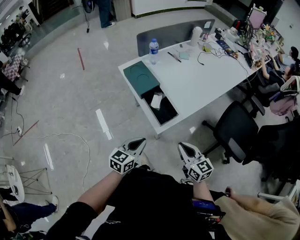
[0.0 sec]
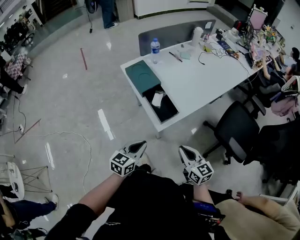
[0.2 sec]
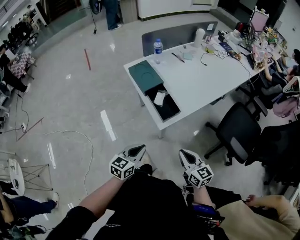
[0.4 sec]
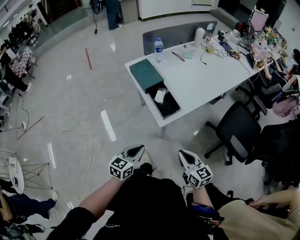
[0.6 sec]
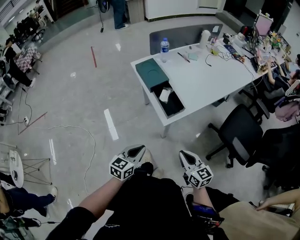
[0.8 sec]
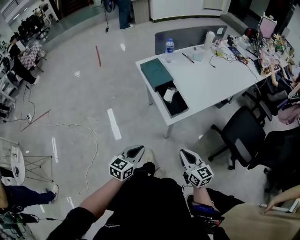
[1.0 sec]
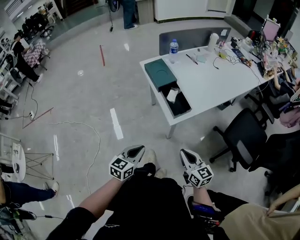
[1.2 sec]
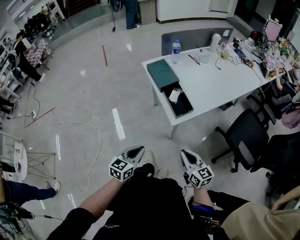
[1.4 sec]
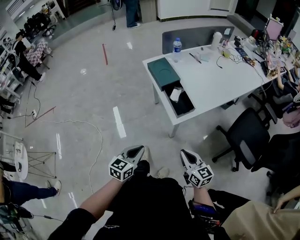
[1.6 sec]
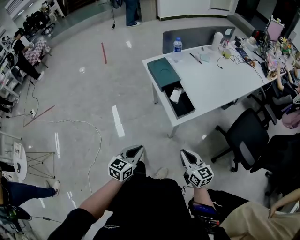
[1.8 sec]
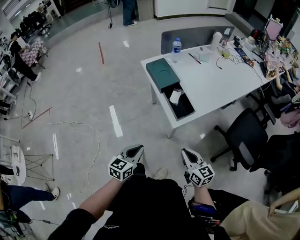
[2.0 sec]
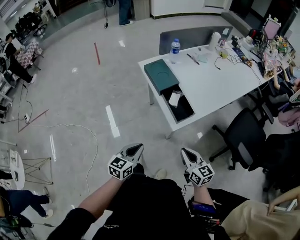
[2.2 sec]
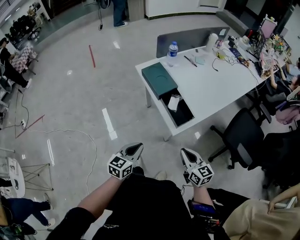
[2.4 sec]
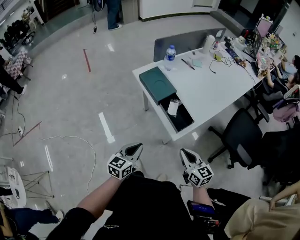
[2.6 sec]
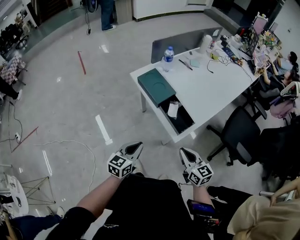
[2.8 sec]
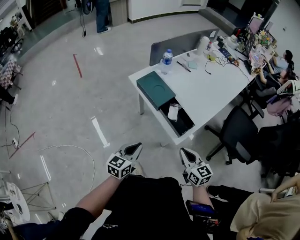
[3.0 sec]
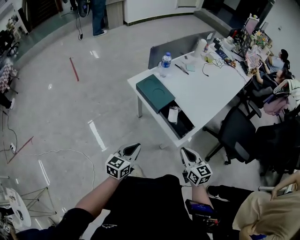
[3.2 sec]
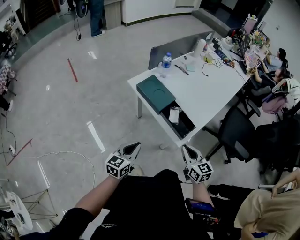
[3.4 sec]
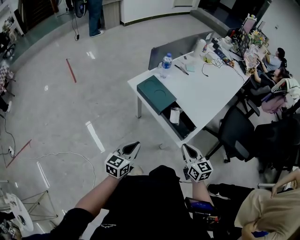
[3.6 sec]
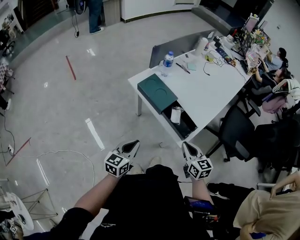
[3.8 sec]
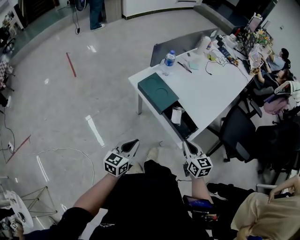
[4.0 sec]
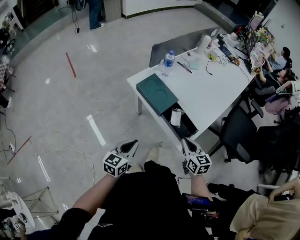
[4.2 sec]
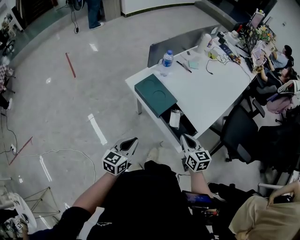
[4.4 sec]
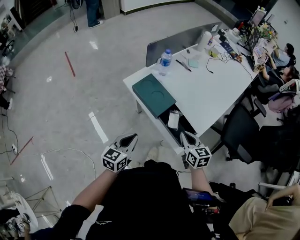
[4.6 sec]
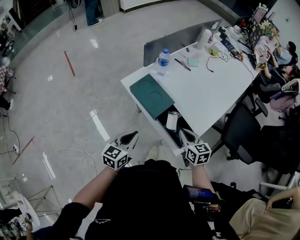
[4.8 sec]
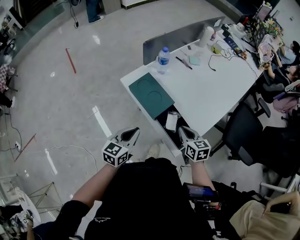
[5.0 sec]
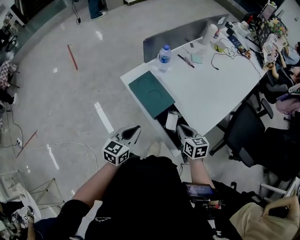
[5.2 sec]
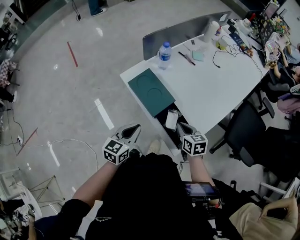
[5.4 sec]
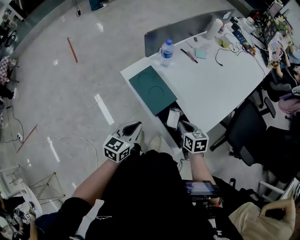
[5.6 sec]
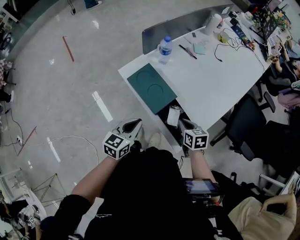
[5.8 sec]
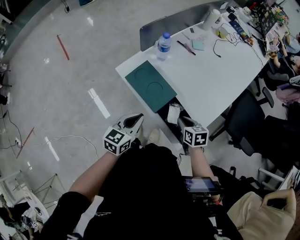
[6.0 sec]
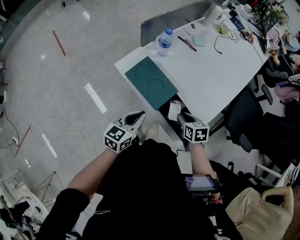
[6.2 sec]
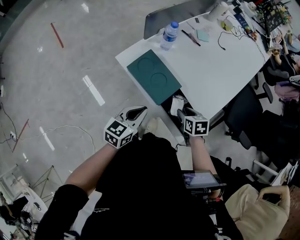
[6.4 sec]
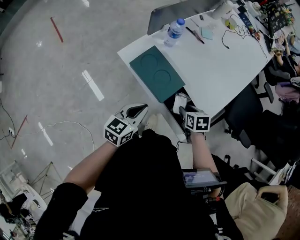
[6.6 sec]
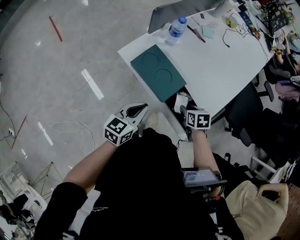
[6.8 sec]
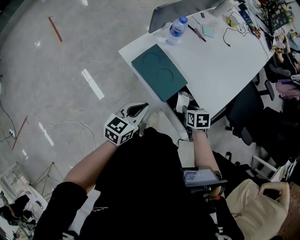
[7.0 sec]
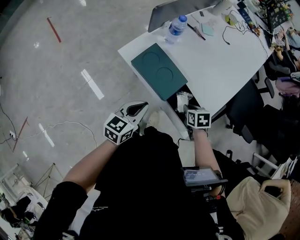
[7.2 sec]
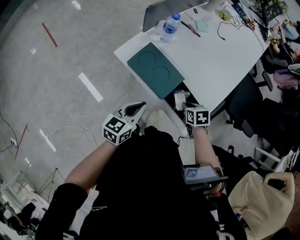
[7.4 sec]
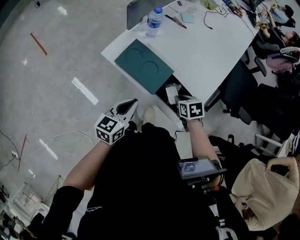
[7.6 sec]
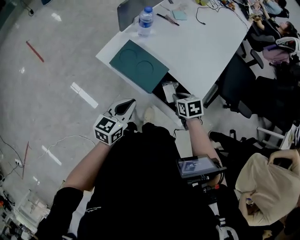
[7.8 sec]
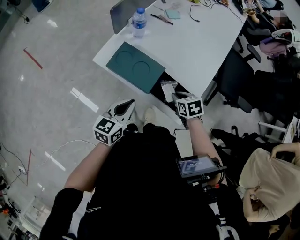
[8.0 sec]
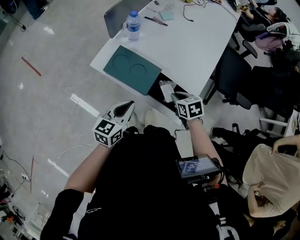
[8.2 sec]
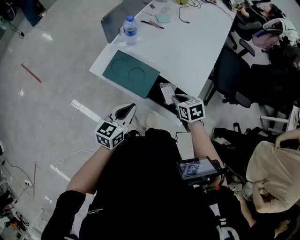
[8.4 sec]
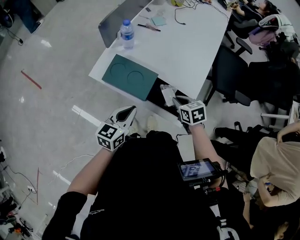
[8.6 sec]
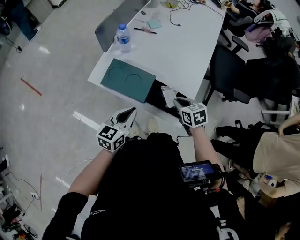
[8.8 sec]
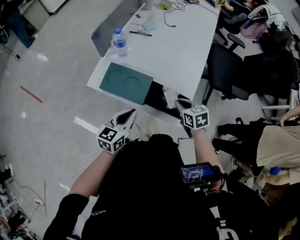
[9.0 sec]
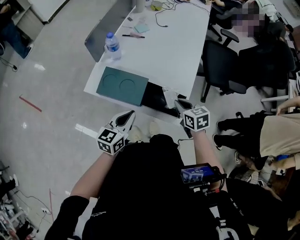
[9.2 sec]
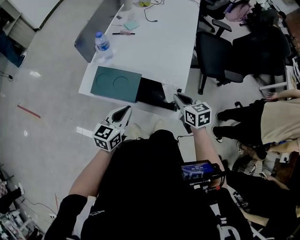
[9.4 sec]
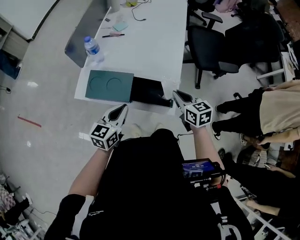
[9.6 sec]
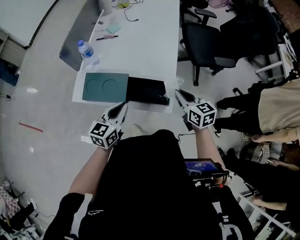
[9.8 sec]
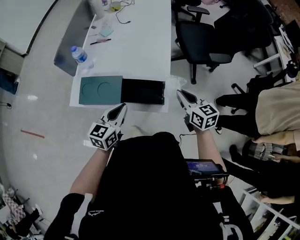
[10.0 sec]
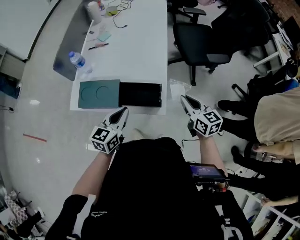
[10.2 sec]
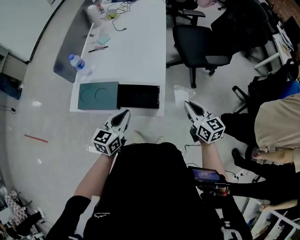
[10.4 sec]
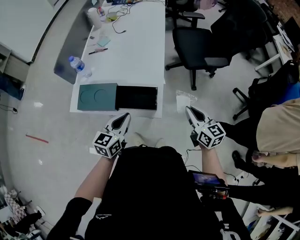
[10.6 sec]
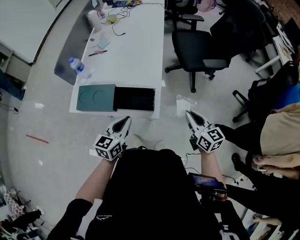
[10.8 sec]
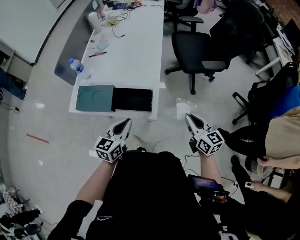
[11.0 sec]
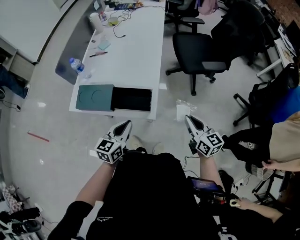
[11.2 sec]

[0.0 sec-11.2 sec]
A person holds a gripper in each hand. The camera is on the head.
0.0 sec to 1.6 sec: The right gripper is displaced backward by approximately 10 cm. The left gripper is displaced backward and to the left by some 15 cm.
1.6 sec to 3.2 sec: Both grippers travel together forward and to the left, approximately 20 cm. The right gripper rotates roughly 20 degrees.
3.2 sec to 4.8 sec: The two grippers go approximately 15 cm forward.
4.8 sec to 6.4 sec: The right gripper heads downward and forward, covering about 10 cm, swivels about 30 degrees, and opens its fingers. Meanwhile the left gripper heads forward, covering some 10 cm.
6.4 sec to 8.0 sec: The right gripper closes up.
8.0 sec to 9.6 sec: The left gripper moves some 5 cm. Meanwhile the right gripper is displaced upward and to the right by roughly 15 cm, and swivels approximately 40 degrees.
9.6 sec to 11.2 sec: The right gripper is displaced to the right and backward by approximately 20 cm, and swivels some 20 degrees. The left gripper heads to the right, covering about 15 cm.

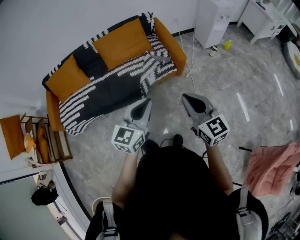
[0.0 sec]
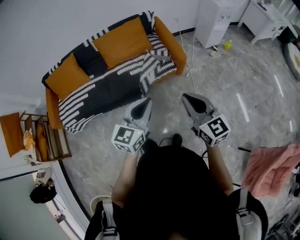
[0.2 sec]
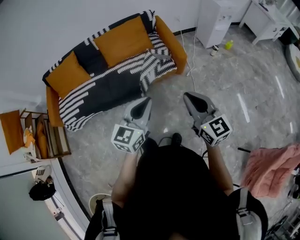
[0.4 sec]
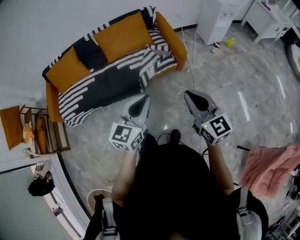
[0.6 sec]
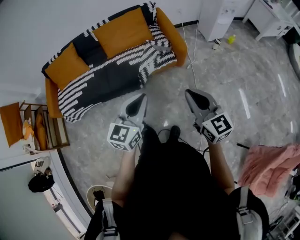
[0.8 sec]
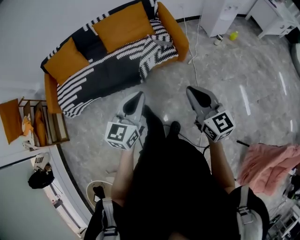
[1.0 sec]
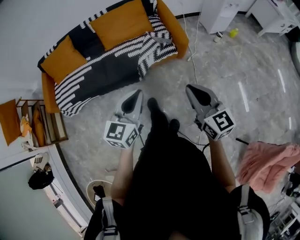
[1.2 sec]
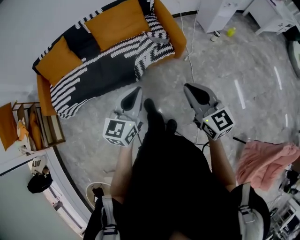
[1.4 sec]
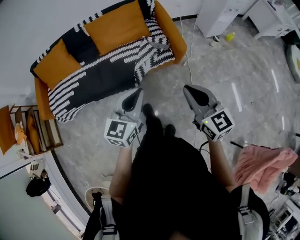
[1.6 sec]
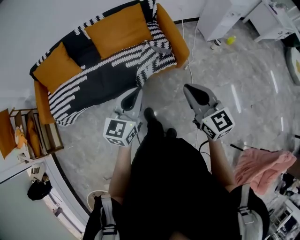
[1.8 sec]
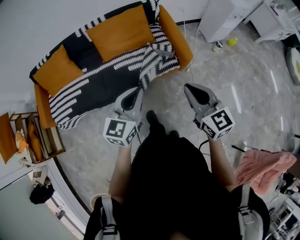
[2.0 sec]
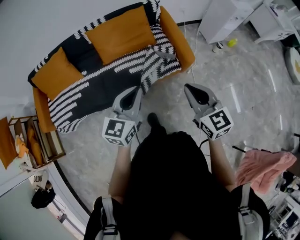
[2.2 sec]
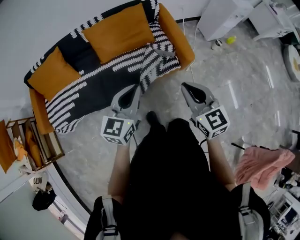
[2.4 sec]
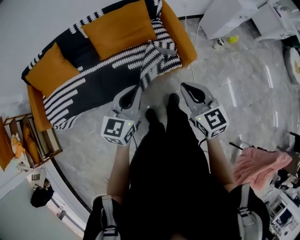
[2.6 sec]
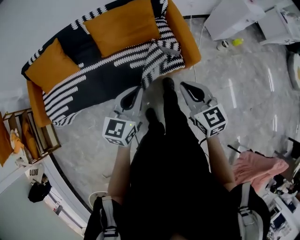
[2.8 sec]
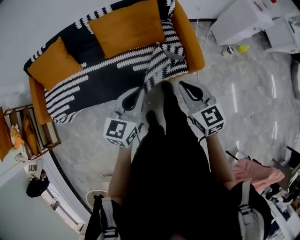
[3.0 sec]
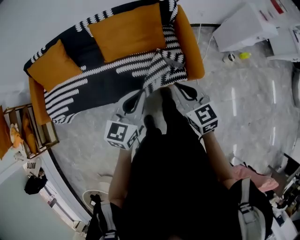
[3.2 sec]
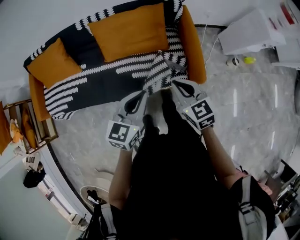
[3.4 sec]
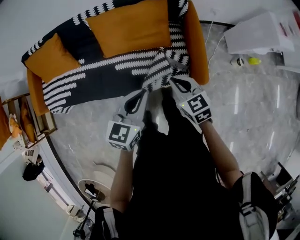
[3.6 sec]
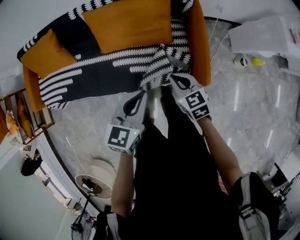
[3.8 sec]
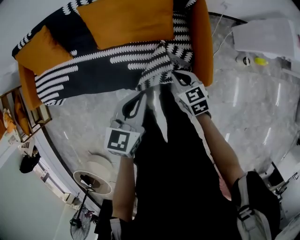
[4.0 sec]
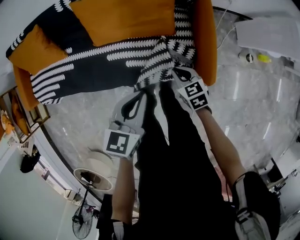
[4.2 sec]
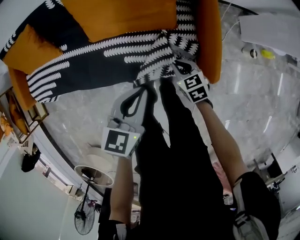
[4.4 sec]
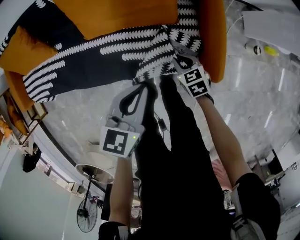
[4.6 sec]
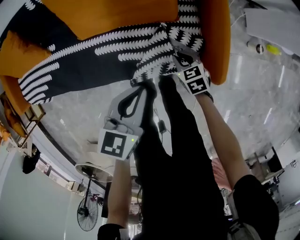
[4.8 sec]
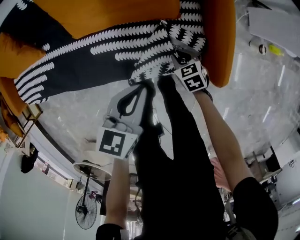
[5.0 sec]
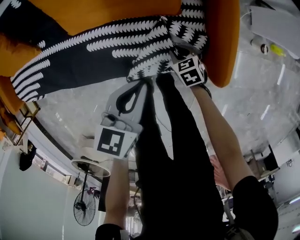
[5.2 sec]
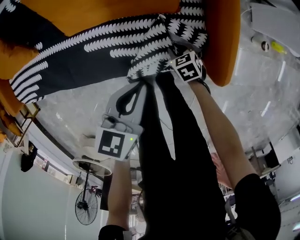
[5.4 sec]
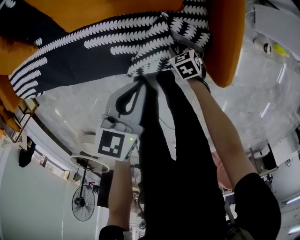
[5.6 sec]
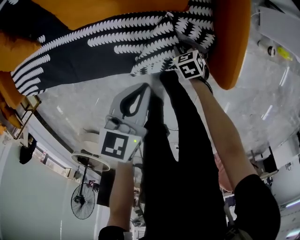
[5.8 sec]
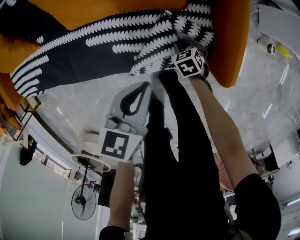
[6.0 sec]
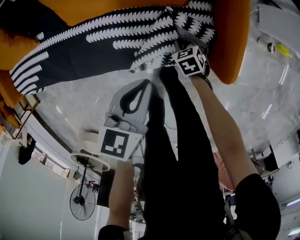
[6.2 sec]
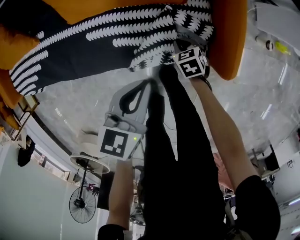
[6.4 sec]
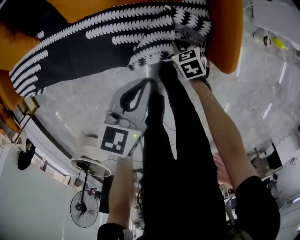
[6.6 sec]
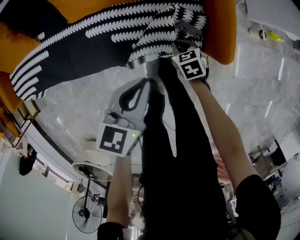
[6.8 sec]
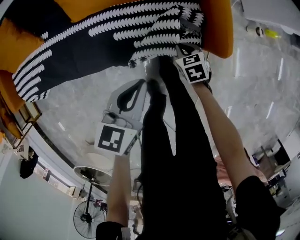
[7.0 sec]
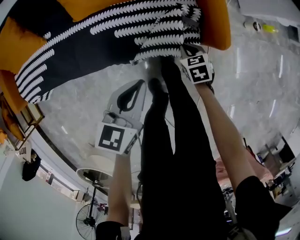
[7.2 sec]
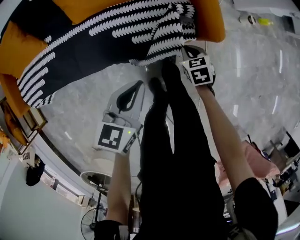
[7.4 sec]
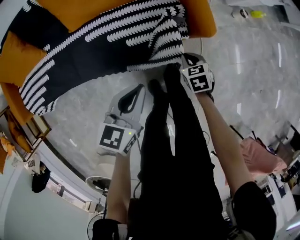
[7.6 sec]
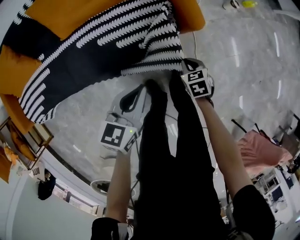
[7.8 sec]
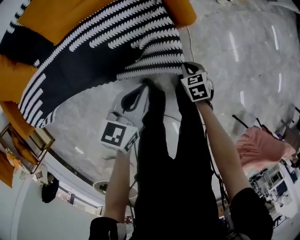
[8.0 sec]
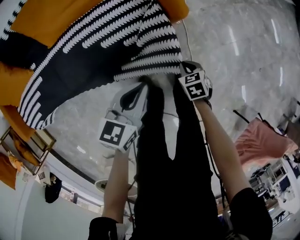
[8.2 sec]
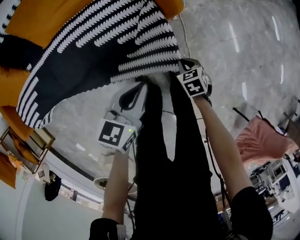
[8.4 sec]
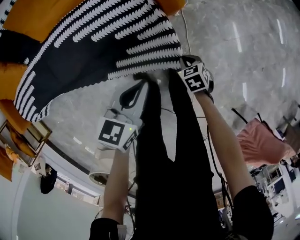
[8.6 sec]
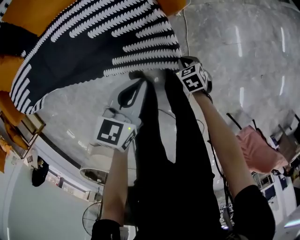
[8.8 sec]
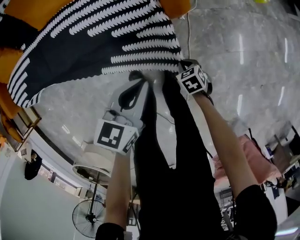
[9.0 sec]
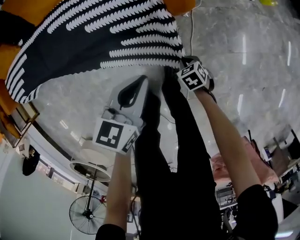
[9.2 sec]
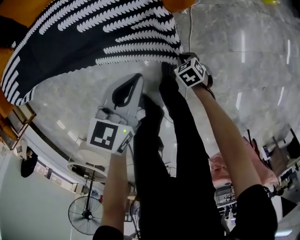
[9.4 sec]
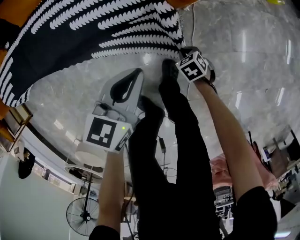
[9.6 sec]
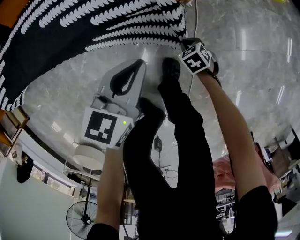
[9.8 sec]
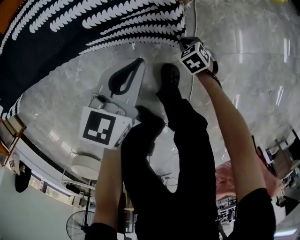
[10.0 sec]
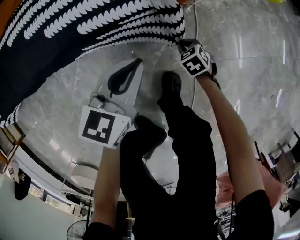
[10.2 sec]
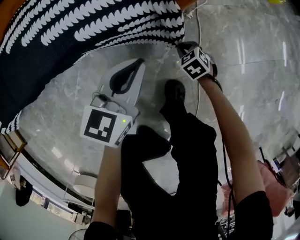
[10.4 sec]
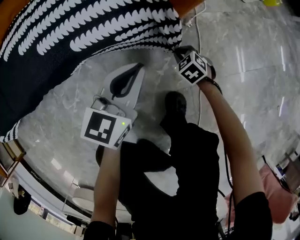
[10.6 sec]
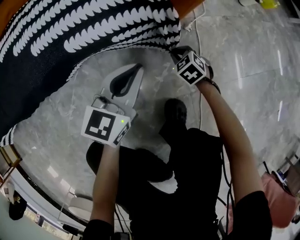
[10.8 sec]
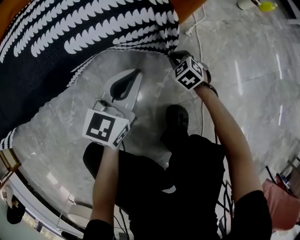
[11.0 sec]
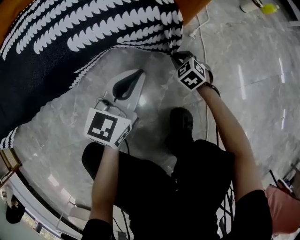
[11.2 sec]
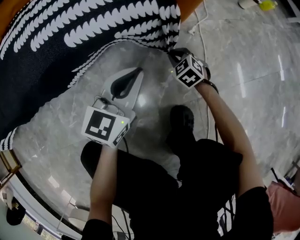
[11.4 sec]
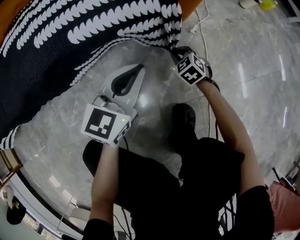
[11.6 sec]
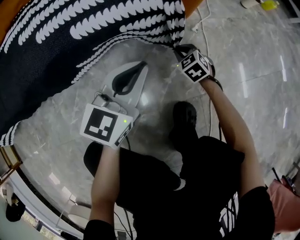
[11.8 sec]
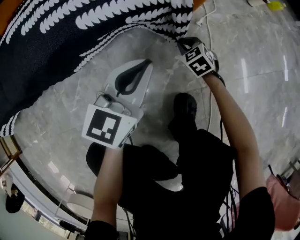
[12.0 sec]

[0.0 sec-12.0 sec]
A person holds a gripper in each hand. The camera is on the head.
0.0 sec to 1.6 sec: Both grippers move forward, about 10 cm.
1.6 sec to 3.0 sec: Both grippers travel together forward and to the left, roughly 25 cm.
3.0 sec to 4.4 sec: The right gripper moves downward and forward, approximately 40 cm, and turns by roughly 30 degrees. The left gripper travels forward, downward and to the right by about 25 cm.
4.4 sec to 6.0 sec: The right gripper travels downward by approximately 25 cm. Meanwhile the left gripper goes approximately 15 cm downward.
6.0 sec to 7.6 sec: The left gripper goes some 20 cm backward and upward. Meanwhile the right gripper heads upward and backward, covering some 25 cm, and rotates about 20 degrees.
7.6 sec to 9.0 sec: The right gripper moves about 25 cm. Meanwhile the left gripper shifts by some 20 cm.
9.0 sec to 10.4 sec: The two grippers go roughly 25 cm downward.
10.4 sec to 12.0 sec: The two grippers go approximately 10 cm downward.
